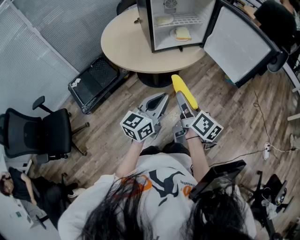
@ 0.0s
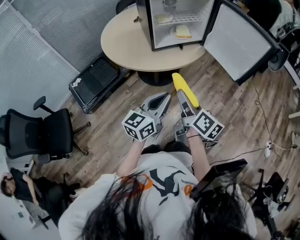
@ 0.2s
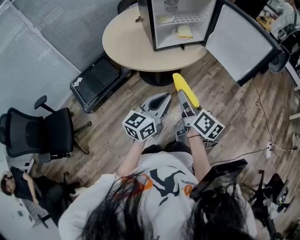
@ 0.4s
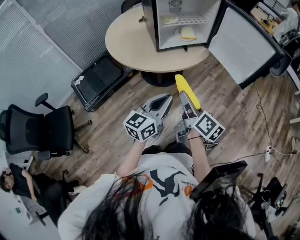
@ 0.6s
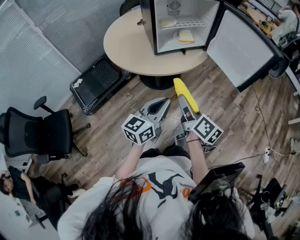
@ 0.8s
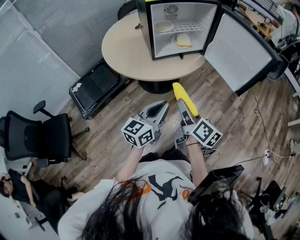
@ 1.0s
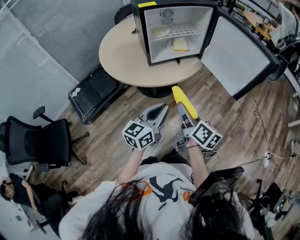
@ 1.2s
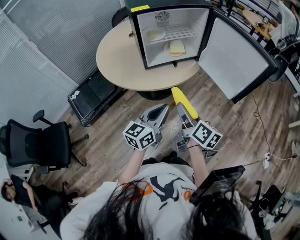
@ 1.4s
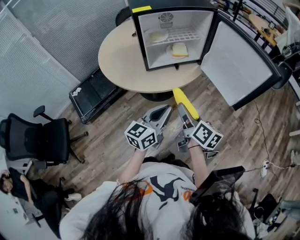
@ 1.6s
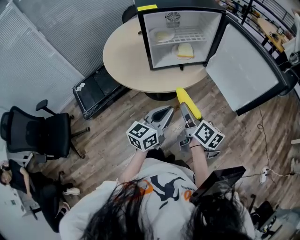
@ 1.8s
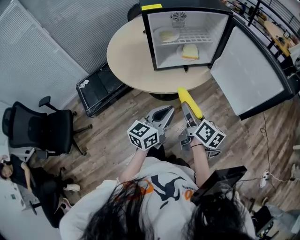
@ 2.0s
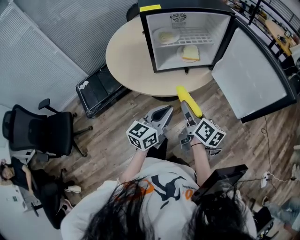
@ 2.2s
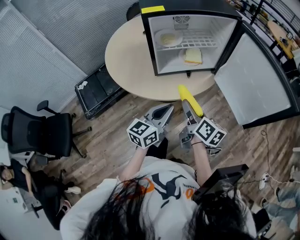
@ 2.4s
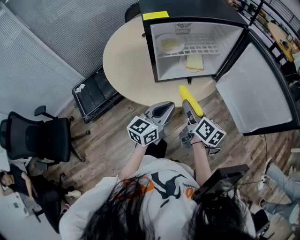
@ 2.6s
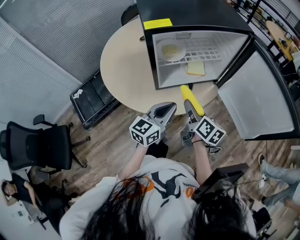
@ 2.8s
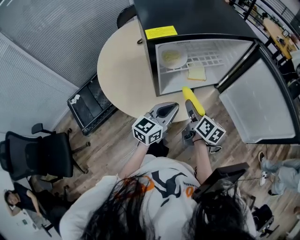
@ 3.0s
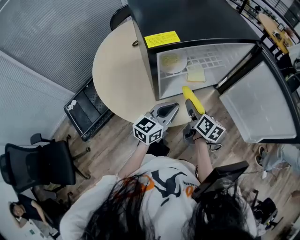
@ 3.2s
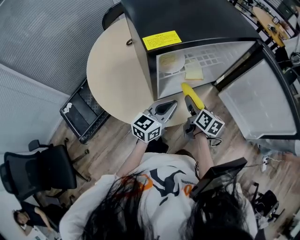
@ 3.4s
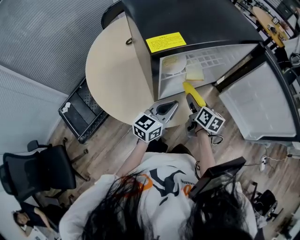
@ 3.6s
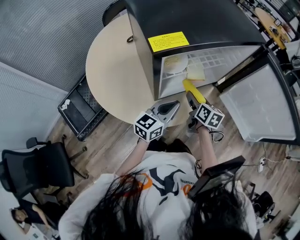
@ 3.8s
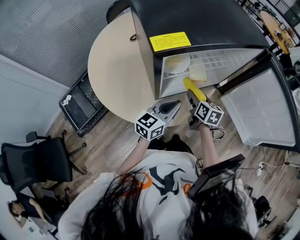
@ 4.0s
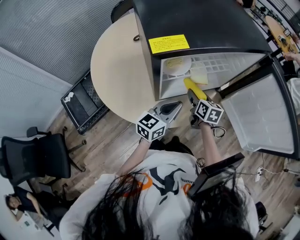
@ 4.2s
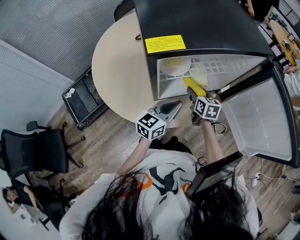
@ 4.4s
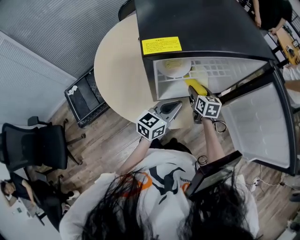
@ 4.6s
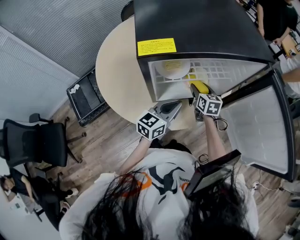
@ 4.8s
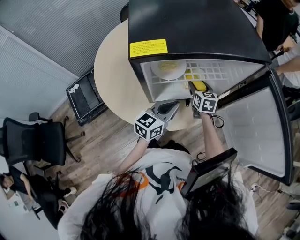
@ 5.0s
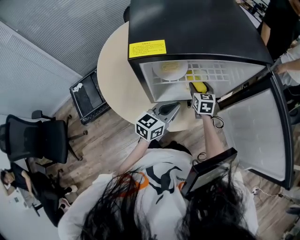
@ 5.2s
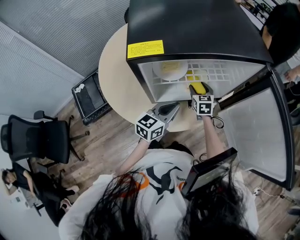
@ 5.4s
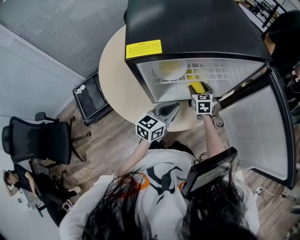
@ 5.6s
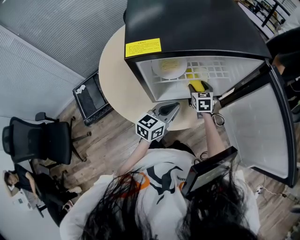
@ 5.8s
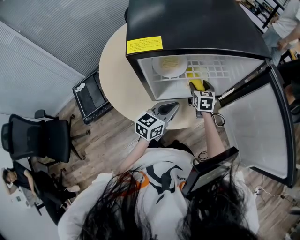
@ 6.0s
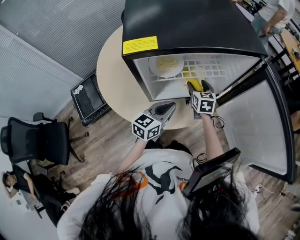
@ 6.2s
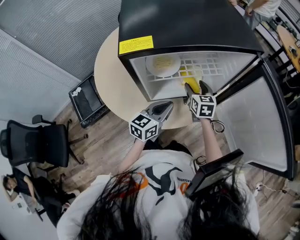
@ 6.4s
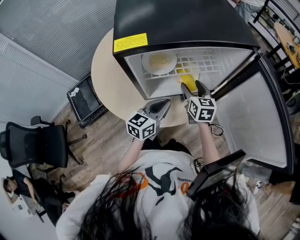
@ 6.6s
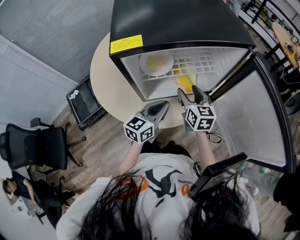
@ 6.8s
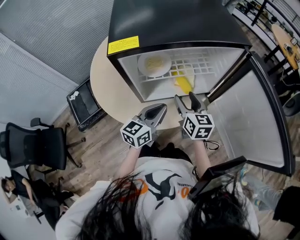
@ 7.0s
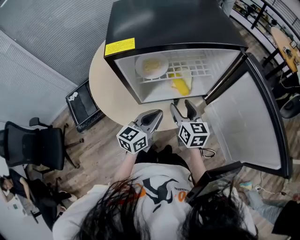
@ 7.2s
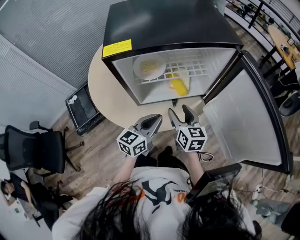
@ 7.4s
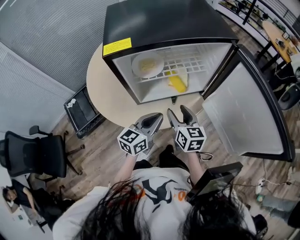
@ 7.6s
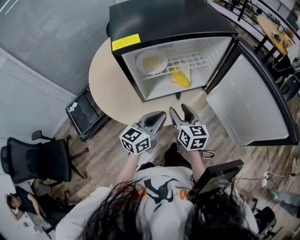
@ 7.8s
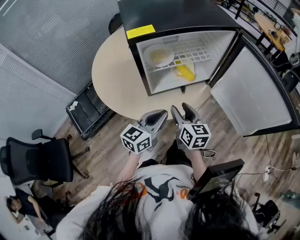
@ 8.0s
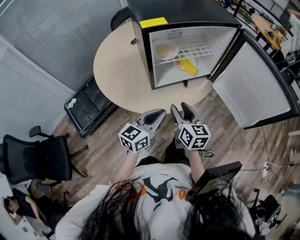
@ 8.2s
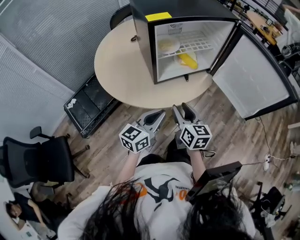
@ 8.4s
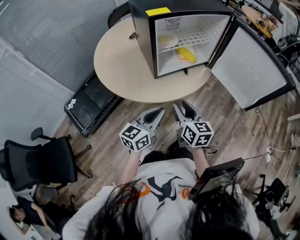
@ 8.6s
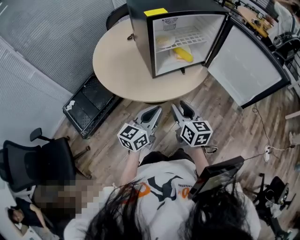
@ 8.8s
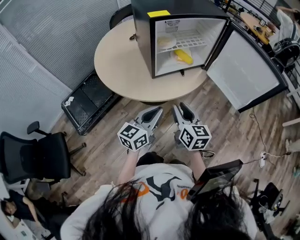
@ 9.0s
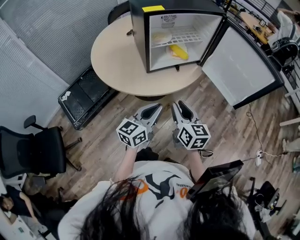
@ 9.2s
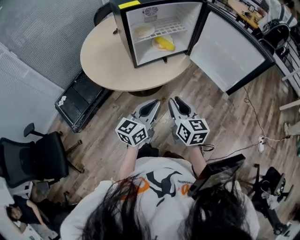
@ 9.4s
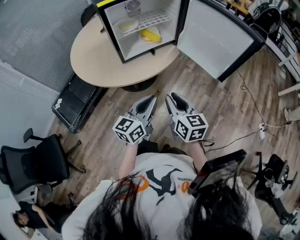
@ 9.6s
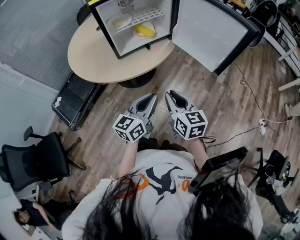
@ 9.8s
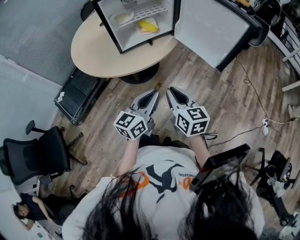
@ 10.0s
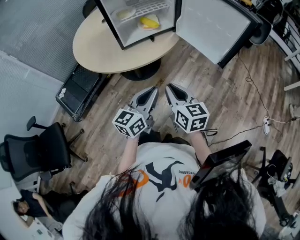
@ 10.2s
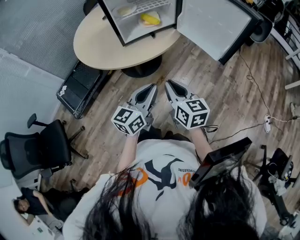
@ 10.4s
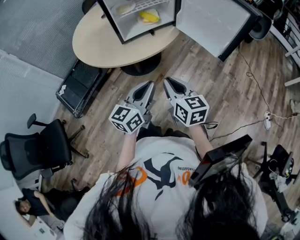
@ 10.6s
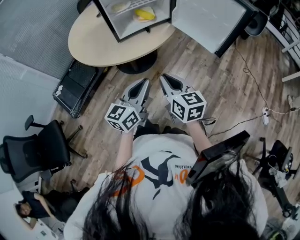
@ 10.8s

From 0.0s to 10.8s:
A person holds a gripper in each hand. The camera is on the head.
From 0.0s to 1.6s: The two grippers go some 10 cm forward and to the right.
From 1.6s to 3.0s: Both grippers move forward, approximately 25 cm.
From 3.0s to 4.6s: The left gripper shifts roughly 10 cm forward. The right gripper travels forward and downward by some 20 cm, and changes its angle by about 30 degrees.
From 4.6s to 6.2s: The grippers make only small movements.
From 6.2s to 7.8s: The right gripper is displaced backward and upward by roughly 20 cm. The left gripper travels backward by about 10 cm.
From 7.8s to 9.2s: The two grippers go some 20 cm backward. The right gripper closes its fingers.
From 9.2s to 10.8s: The two grippers go some 15 cm to the right and backward.

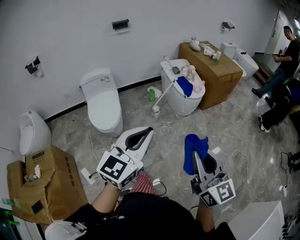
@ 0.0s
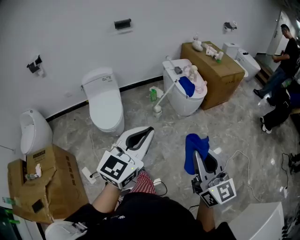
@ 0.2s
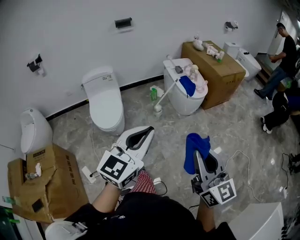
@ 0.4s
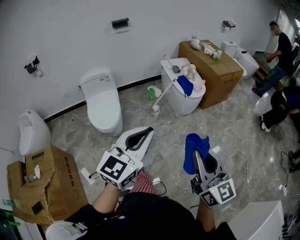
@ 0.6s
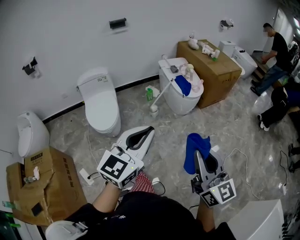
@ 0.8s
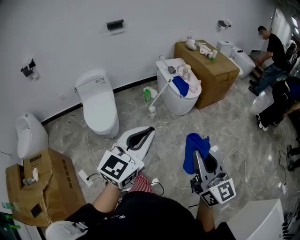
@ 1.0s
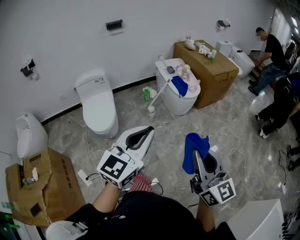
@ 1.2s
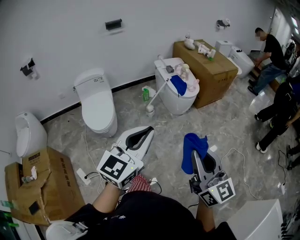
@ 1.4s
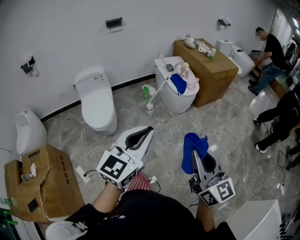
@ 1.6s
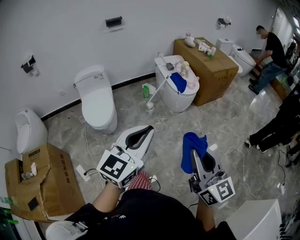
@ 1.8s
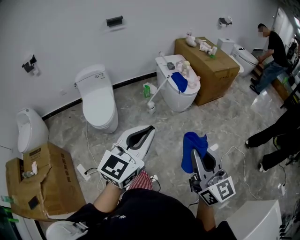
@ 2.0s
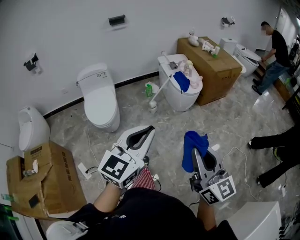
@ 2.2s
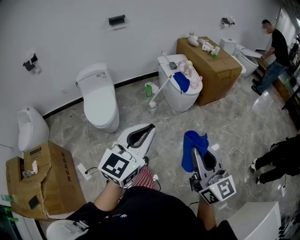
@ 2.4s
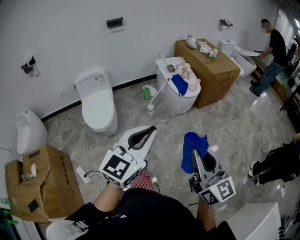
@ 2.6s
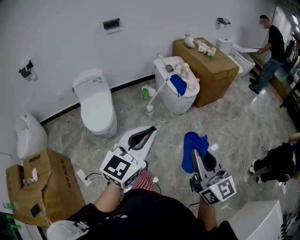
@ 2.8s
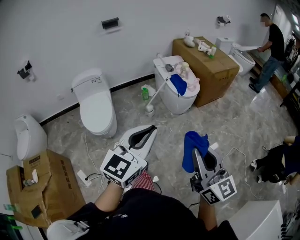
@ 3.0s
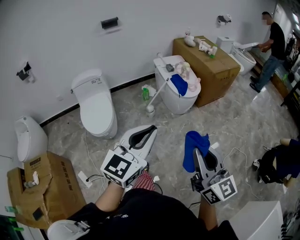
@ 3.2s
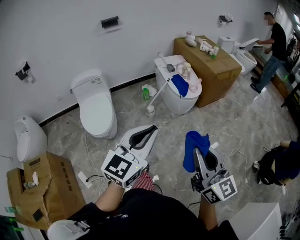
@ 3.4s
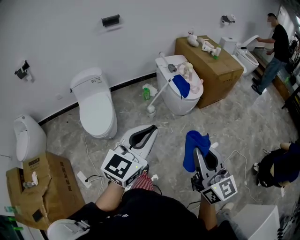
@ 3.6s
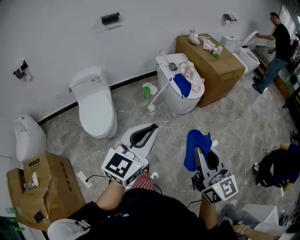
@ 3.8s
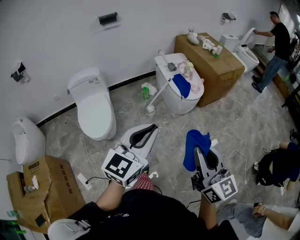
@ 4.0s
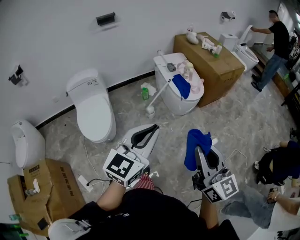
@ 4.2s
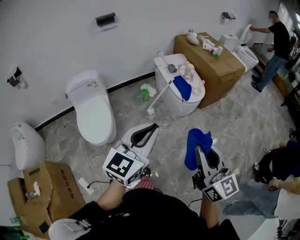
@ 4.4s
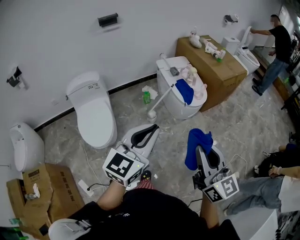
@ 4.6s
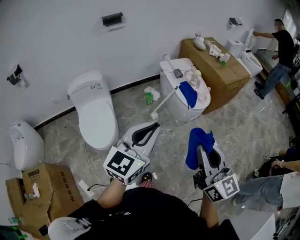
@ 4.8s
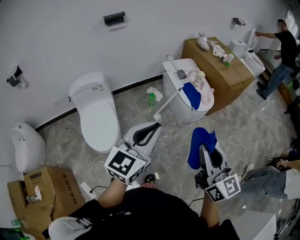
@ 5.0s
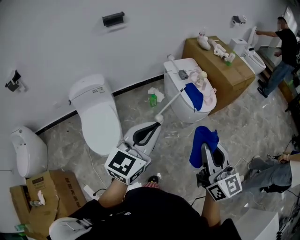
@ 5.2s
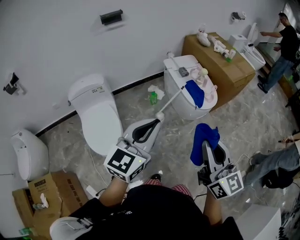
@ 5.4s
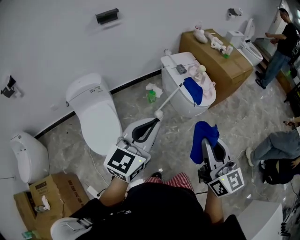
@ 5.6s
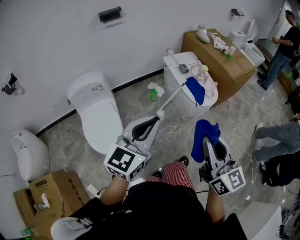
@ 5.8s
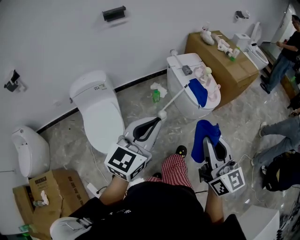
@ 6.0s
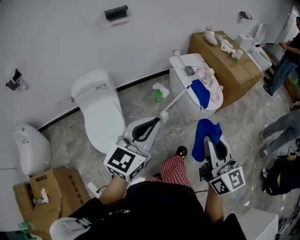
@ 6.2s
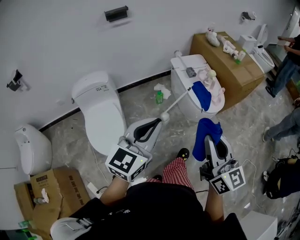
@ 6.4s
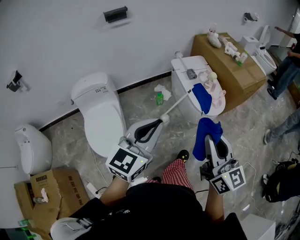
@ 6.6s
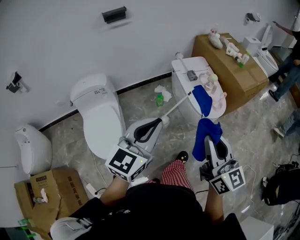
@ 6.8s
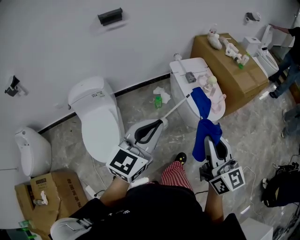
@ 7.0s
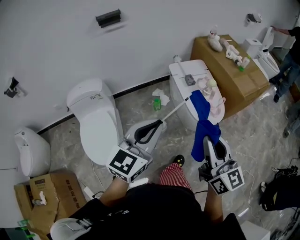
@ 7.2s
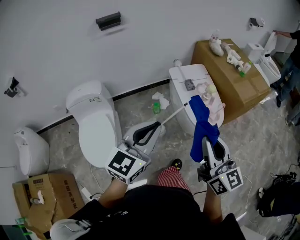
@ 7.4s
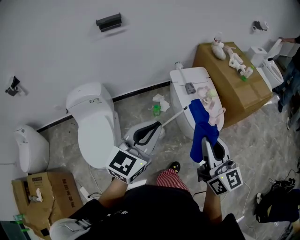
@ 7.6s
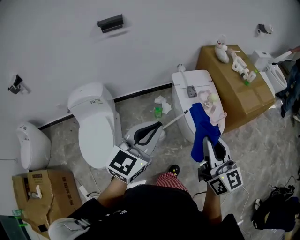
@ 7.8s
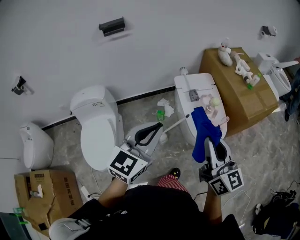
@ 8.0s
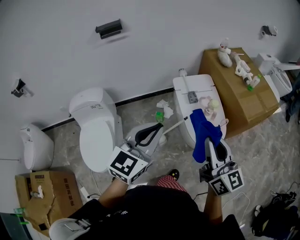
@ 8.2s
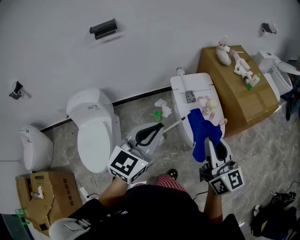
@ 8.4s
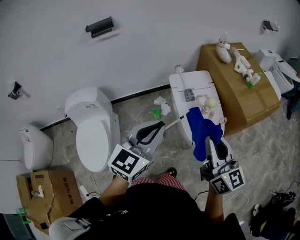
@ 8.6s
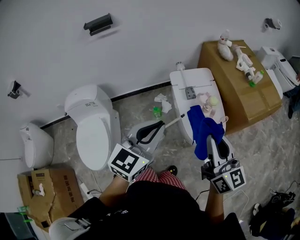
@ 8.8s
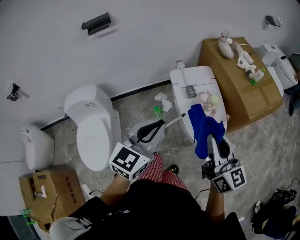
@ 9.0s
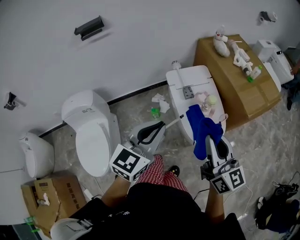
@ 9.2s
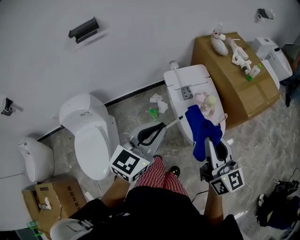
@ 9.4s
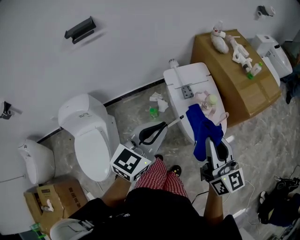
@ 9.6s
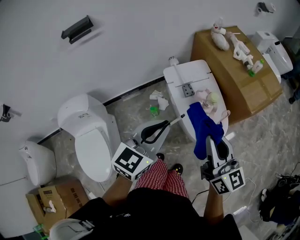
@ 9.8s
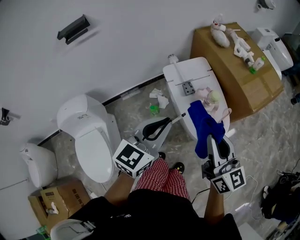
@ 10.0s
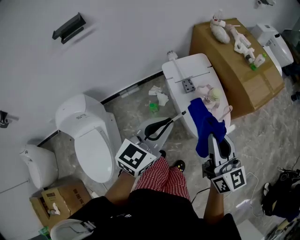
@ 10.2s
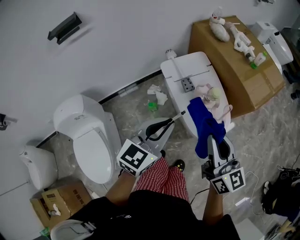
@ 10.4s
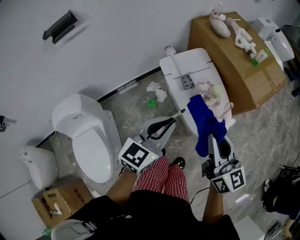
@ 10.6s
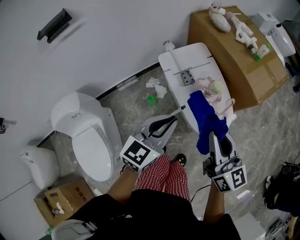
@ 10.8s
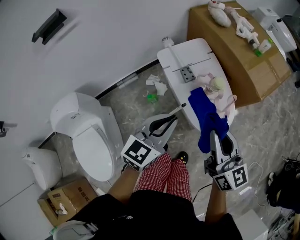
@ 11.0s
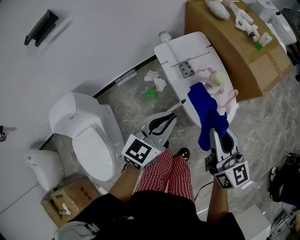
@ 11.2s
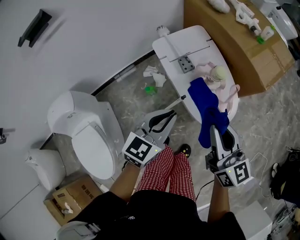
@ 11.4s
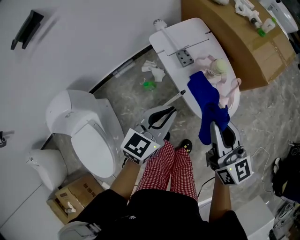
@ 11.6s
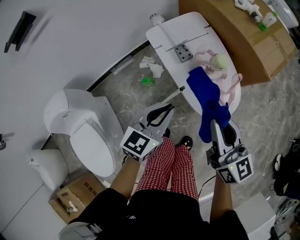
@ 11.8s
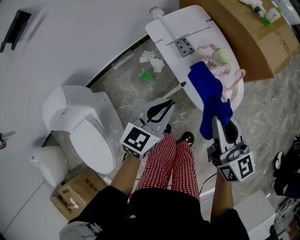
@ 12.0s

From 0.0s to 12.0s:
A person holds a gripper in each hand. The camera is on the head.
From 0.0s to 1.6s: The left gripper heads to the right, covering about 5 cm.
From 1.6s to 3.0s: The left gripper shifts approximately 5 cm forward.
From 3.0s to 4.4s: The two grippers go approximately 15 cm forward.
From 4.4s to 6.0s: The two grippers go roughly 20 cm forward and to the left.
From 6.0s to 7.6s: The right gripper shifts some 25 cm forward. The left gripper travels forward and to the right by approximately 20 cm.
From 7.6s to 9.0s: The grippers both shift forward and to the right by about 15 cm.
From 9.0s to 10.4s: Both grippers move forward and downward, about 10 cm.
From 10.4s to 12.0s: Both grippers travel together downward, about 15 cm.

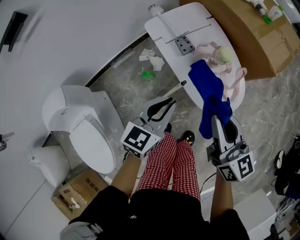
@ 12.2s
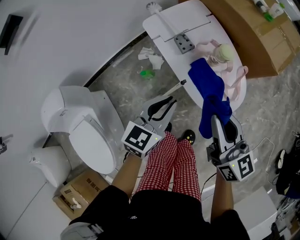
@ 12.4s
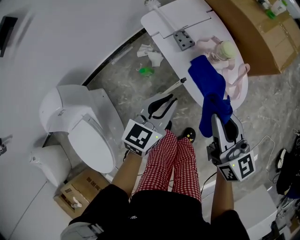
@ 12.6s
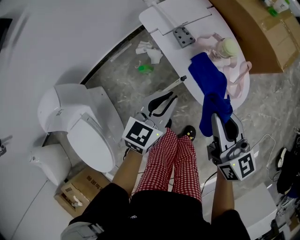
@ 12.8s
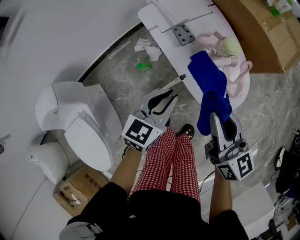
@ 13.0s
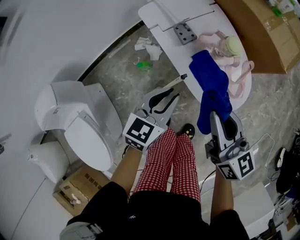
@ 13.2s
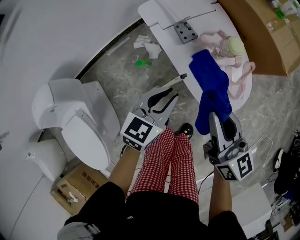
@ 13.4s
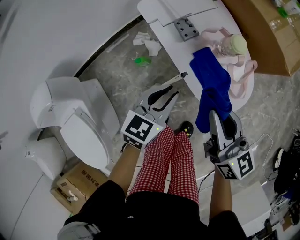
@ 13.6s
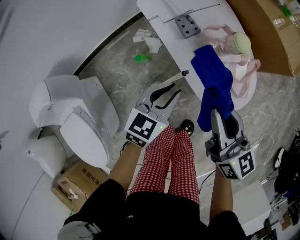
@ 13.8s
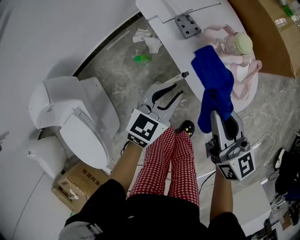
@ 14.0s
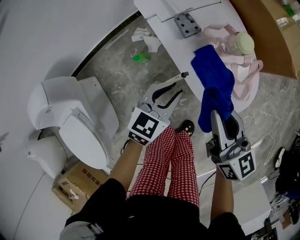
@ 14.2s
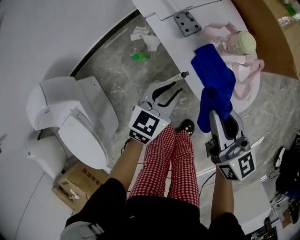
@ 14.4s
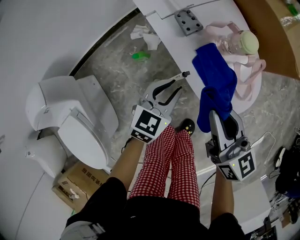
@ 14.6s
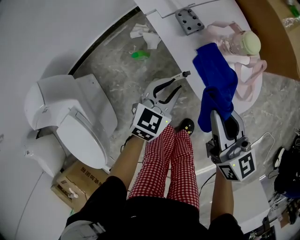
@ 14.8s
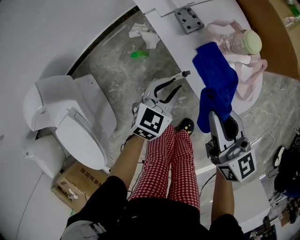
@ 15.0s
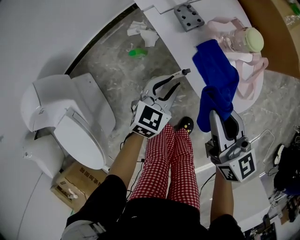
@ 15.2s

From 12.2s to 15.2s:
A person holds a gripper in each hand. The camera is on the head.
From 12.2s to 13.8s: Both grippers move downward, approximately 10 cm.
From 13.8s to 15.2s: The left gripper shifts some 10 cm downward. The right gripper heads downward, covering roughly 5 cm.
